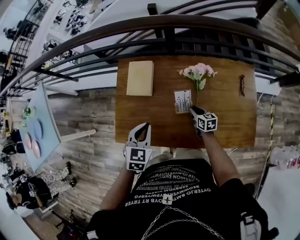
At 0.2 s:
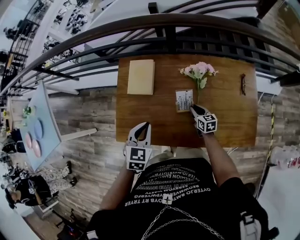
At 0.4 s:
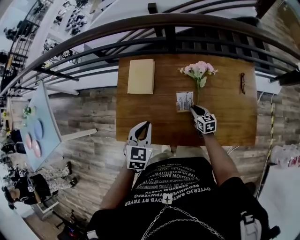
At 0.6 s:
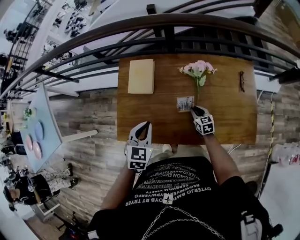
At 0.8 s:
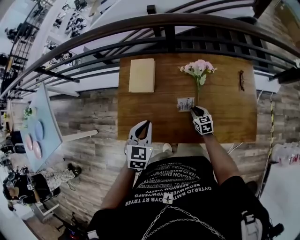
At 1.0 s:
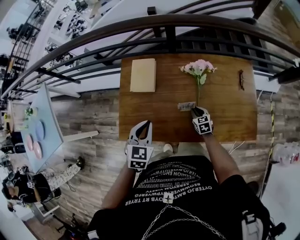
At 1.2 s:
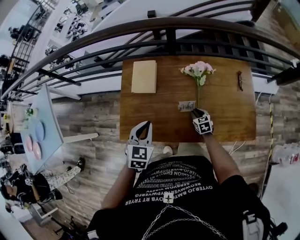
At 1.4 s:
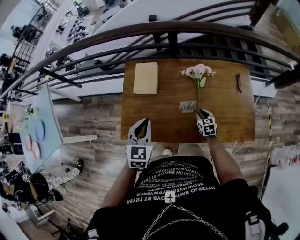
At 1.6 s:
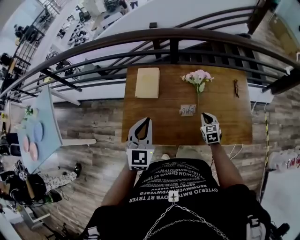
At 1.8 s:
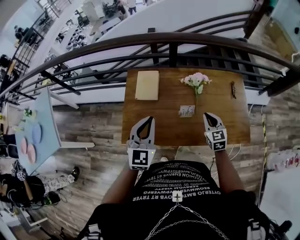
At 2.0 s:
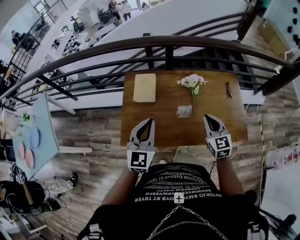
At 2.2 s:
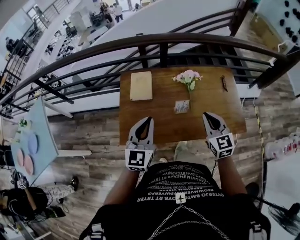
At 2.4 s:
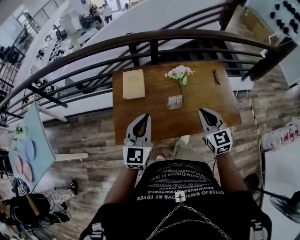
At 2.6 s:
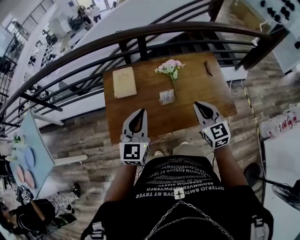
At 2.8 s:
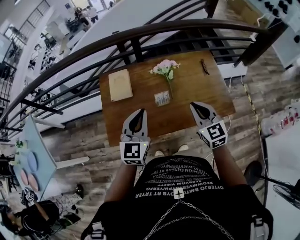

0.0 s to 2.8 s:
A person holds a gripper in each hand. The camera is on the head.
0.0 to 1.4 s: The right gripper travels backward by about 5 cm, and rotates some 20 degrees. Meanwhile the left gripper is displaced upward by about 5 cm.
1.4 to 2.8 s: The left gripper travels upward and to the right by some 15 cm, and changes its angle by some 20 degrees, while the right gripper shifts some 30 cm upward, swivels some 30 degrees, and closes up.

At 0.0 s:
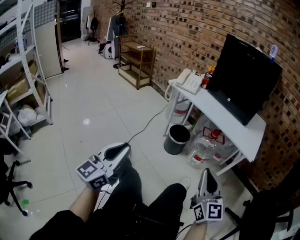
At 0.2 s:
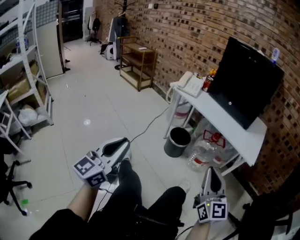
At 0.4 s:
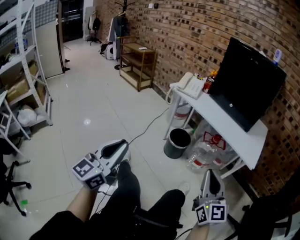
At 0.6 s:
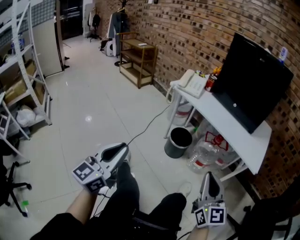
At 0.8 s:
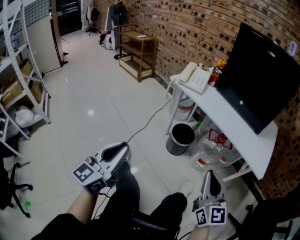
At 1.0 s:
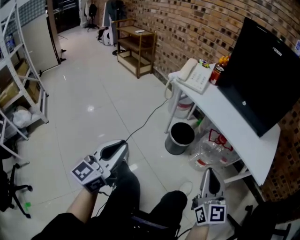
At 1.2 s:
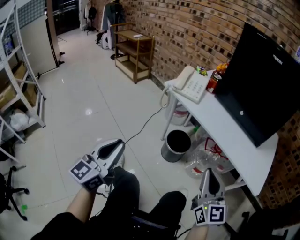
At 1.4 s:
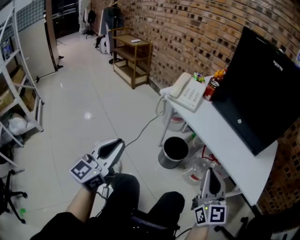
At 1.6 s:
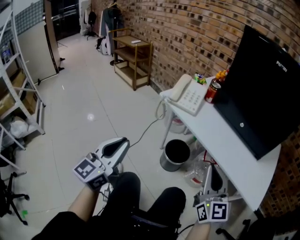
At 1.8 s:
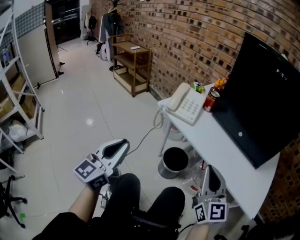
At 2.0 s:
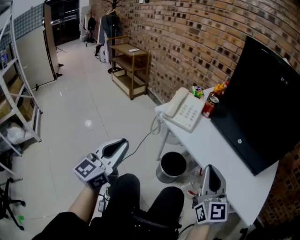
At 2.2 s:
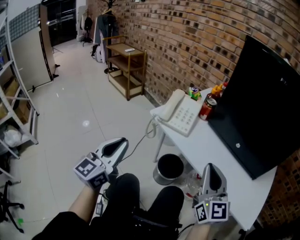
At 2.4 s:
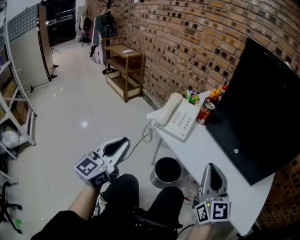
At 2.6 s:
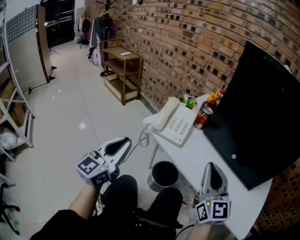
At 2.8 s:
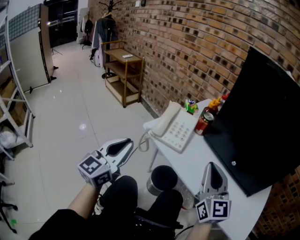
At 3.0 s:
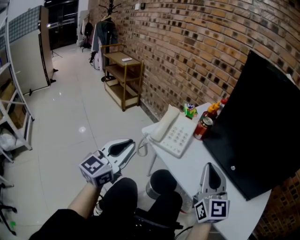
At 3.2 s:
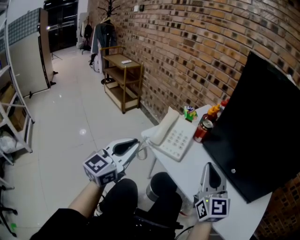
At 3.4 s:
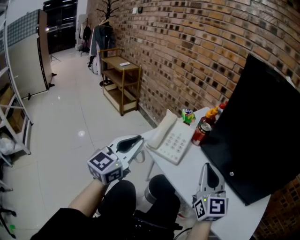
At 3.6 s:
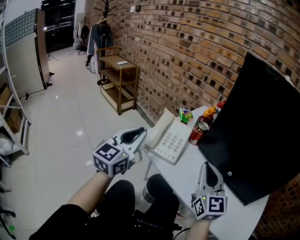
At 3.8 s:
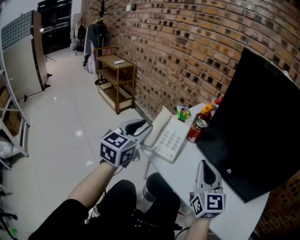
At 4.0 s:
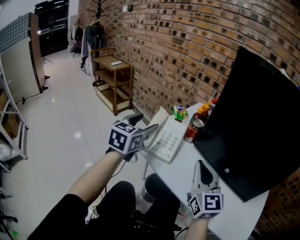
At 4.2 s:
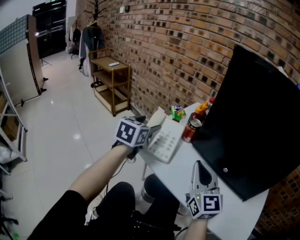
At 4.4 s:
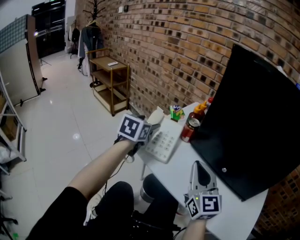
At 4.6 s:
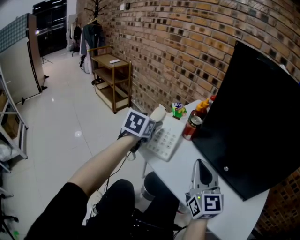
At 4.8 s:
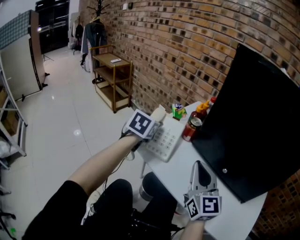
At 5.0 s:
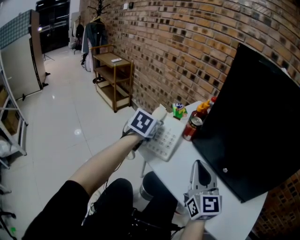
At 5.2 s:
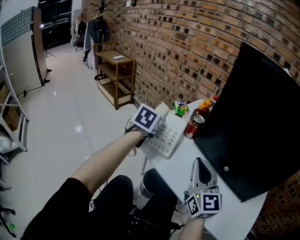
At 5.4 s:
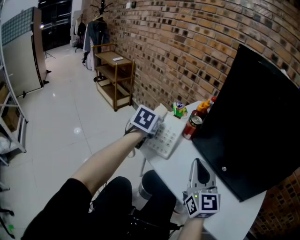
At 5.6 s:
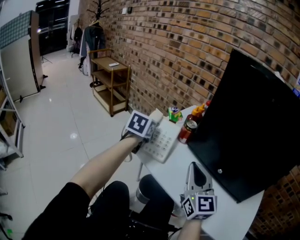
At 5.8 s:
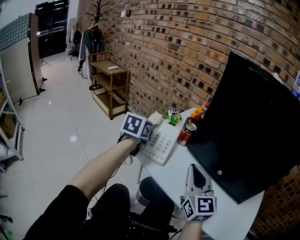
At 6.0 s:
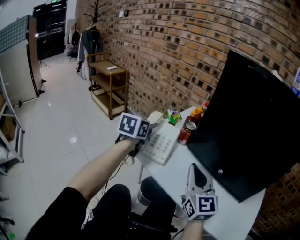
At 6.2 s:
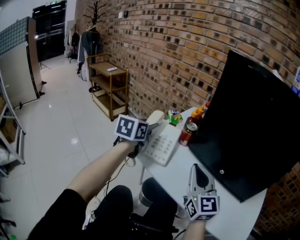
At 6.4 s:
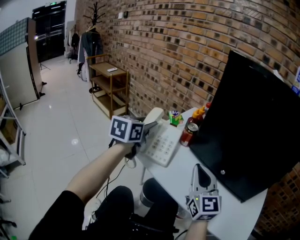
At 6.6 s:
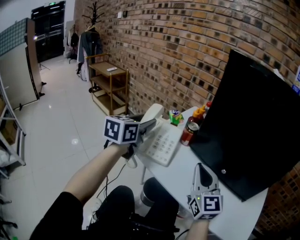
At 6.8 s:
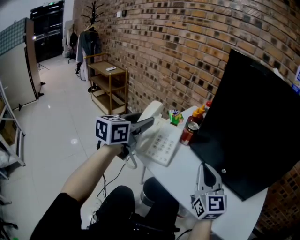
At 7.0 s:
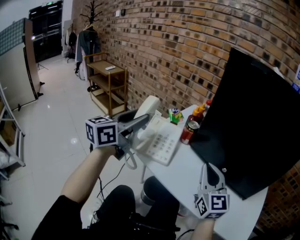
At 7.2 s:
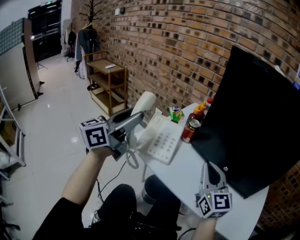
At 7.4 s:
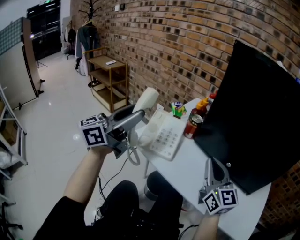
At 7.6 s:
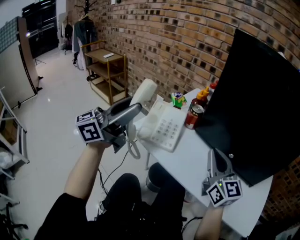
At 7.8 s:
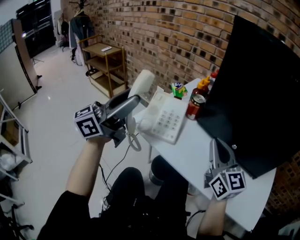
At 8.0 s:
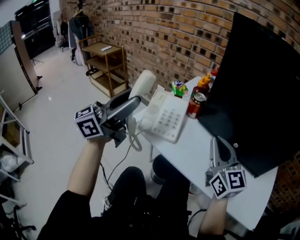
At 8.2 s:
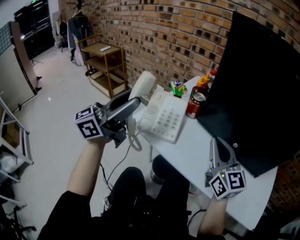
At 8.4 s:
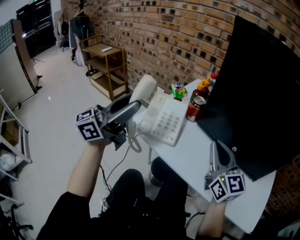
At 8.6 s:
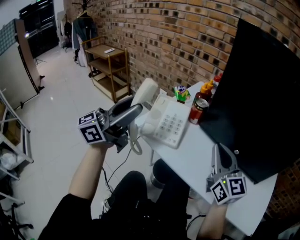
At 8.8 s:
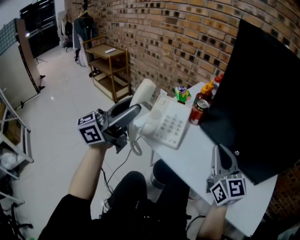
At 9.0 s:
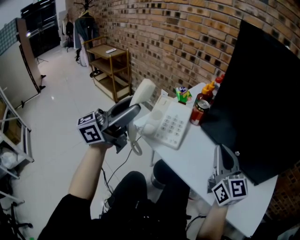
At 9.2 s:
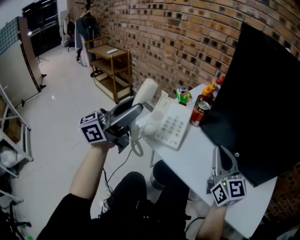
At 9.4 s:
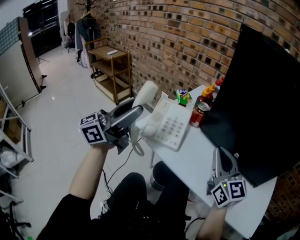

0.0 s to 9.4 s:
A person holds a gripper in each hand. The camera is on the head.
0.0 to 1.6 s: The grippers both shift forward by about 30 cm.
1.6 to 3.2 s: Both grippers travel together forward, roughly 20 cm.
3.2 to 4.8 s: The left gripper goes roughly 20 cm forward and to the right, angles its fingers downward, by some 30 degrees, and opens up.
4.8 to 6.2 s: The grippers stay close to where they were, moving slightly.
6.2 to 7.8 s: The left gripper heads backward and upward, covering some 15 cm, and tilts its fingers some 50 degrees upward.
7.8 to 9.4 s: The grippers make only small movements.

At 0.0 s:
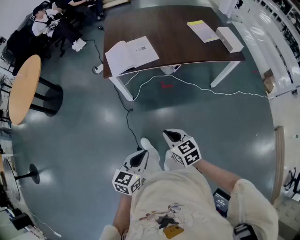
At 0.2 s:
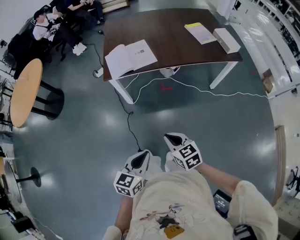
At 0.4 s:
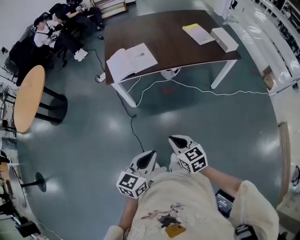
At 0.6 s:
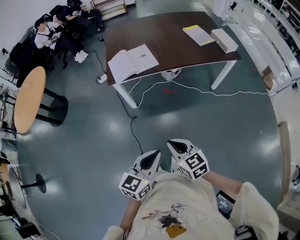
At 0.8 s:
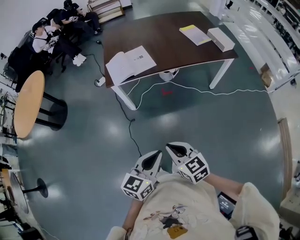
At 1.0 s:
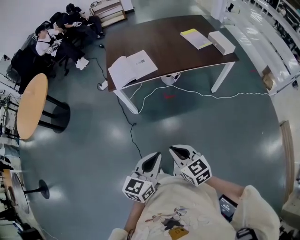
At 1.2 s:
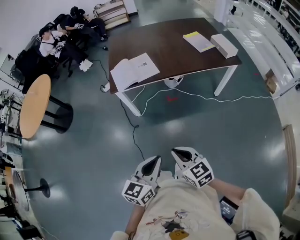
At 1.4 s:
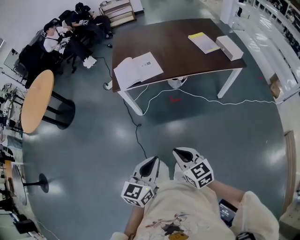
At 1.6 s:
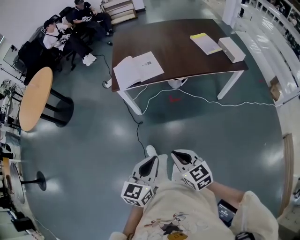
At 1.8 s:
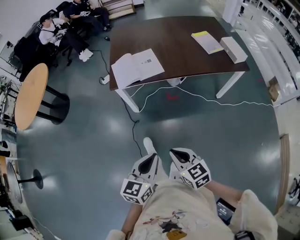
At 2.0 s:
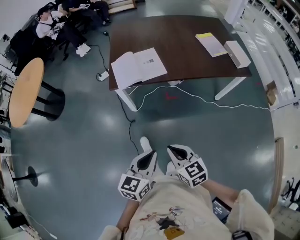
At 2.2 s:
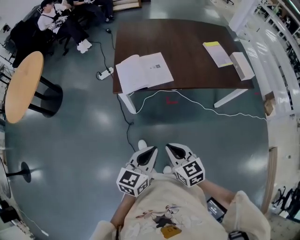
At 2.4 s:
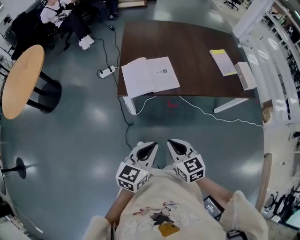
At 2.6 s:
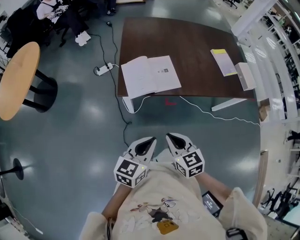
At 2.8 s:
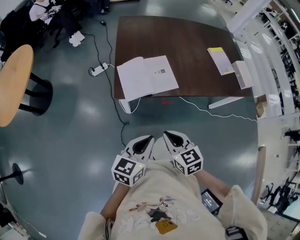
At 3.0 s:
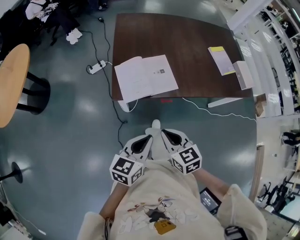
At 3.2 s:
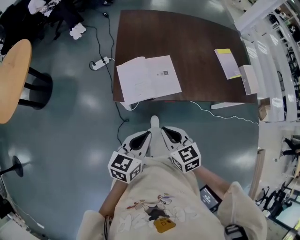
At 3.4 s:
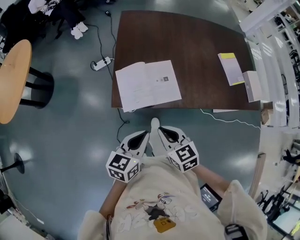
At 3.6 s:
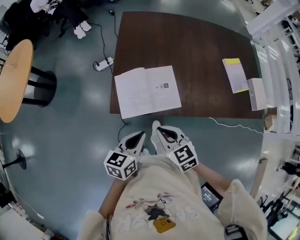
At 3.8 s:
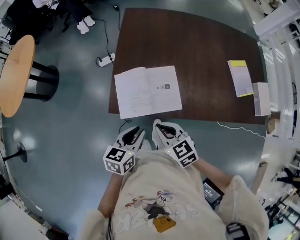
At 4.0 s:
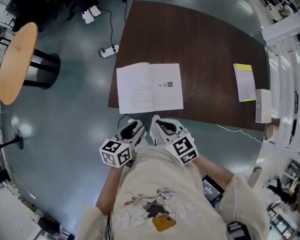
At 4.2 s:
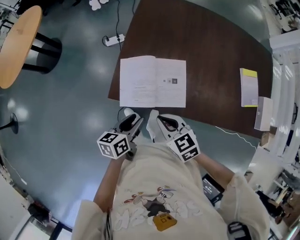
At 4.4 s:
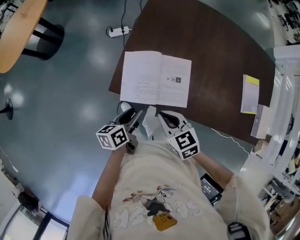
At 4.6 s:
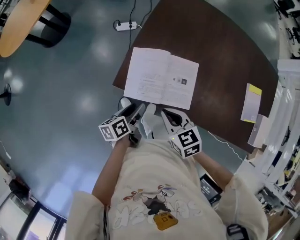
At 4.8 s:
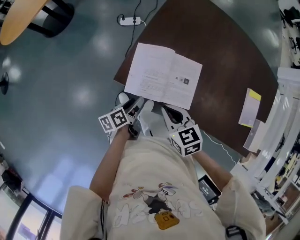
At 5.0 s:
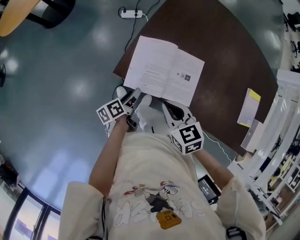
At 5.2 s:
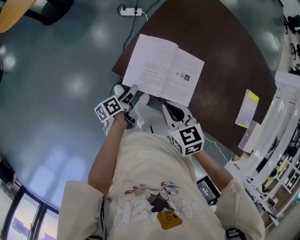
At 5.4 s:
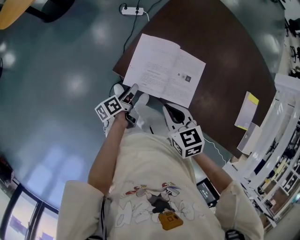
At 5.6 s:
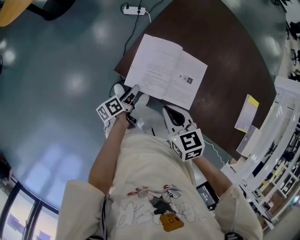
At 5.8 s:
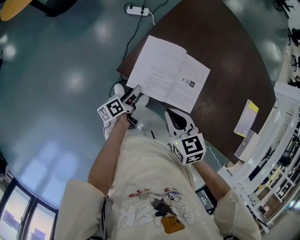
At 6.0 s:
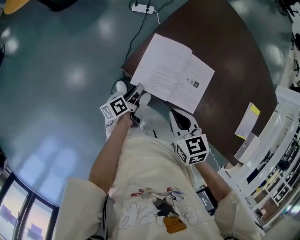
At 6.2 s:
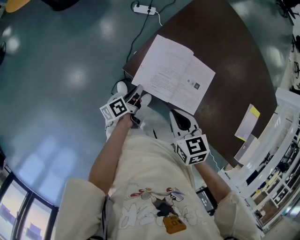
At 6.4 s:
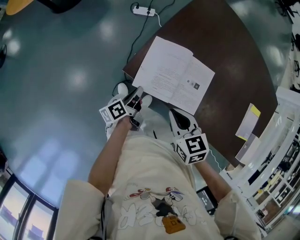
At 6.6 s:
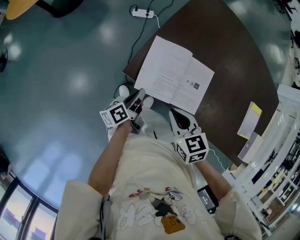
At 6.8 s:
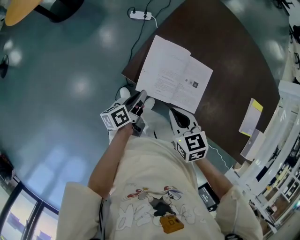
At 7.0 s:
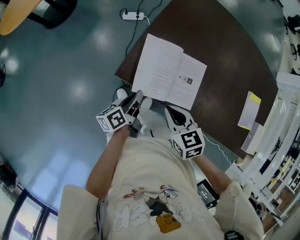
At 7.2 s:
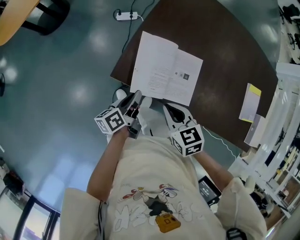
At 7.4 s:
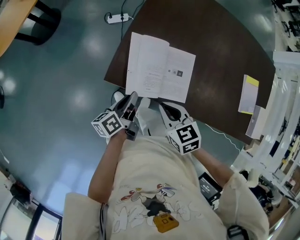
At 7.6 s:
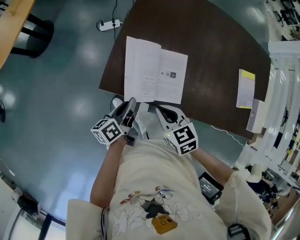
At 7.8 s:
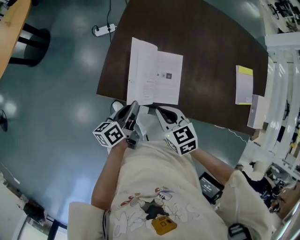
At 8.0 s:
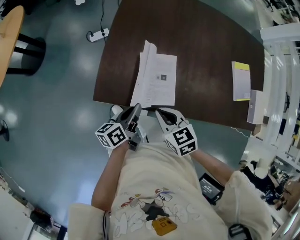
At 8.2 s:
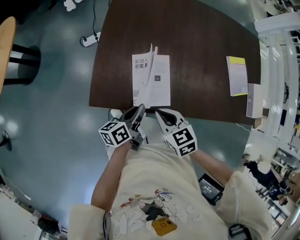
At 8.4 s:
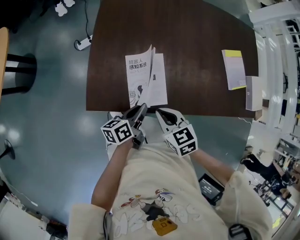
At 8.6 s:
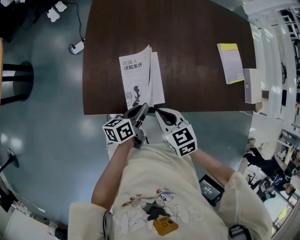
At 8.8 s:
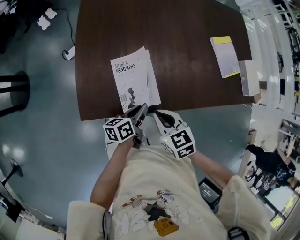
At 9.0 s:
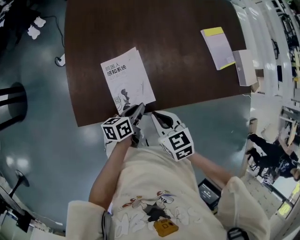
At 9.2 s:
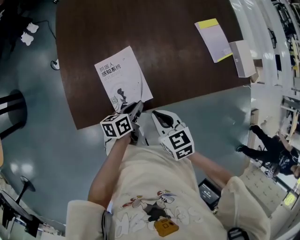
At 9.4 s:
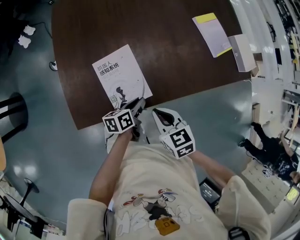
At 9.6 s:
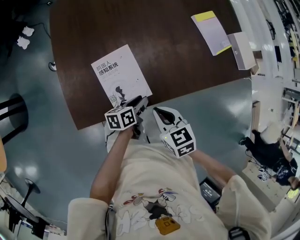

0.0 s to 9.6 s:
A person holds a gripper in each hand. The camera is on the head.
0.0 to 1.6 s: The left gripper travels upward by approximately 10 cm. Meanwhile the right gripper heads backward and upward, covering approximately 10 cm.
1.6 to 3.2 s: Both grippers are carried forward, about 40 cm.
3.2 to 4.8 s: The left gripper travels downward by approximately 20 cm, rolls counterclockwise, seen from behind, by some 60 degrees, and opens. Meanwhile the right gripper ends up about 20 cm from where it was, and swivels roughly 30 degrees.
4.8 to 6.4 s: The left gripper shifts by approximately 5 cm, and closes its fingers.
6.4 to 8.0 s: The right gripper travels to the right by roughly 10 cm, while the left gripper shifts approximately 15 cm to the right and upward, and turns by roughly 30 degrees.
8.0 to 9.6 s: The left gripper moves approximately 20 cm, turns by about 40 degrees, and opens; the right gripper shifts by some 10 cm, and turns by approximately 30 degrees.

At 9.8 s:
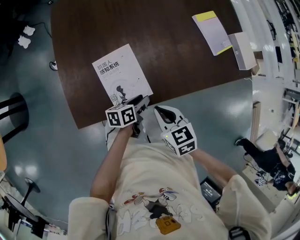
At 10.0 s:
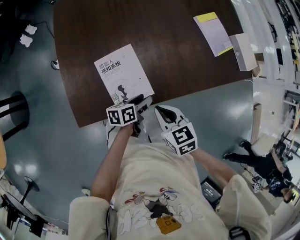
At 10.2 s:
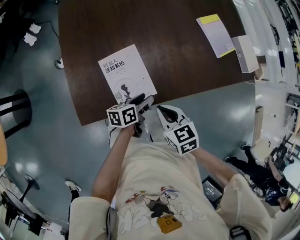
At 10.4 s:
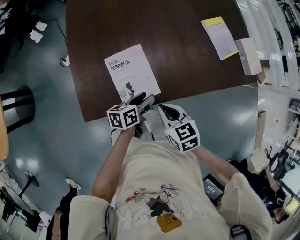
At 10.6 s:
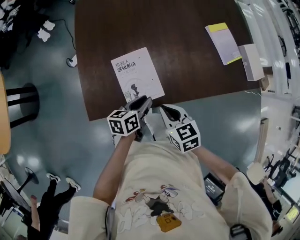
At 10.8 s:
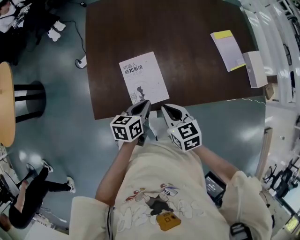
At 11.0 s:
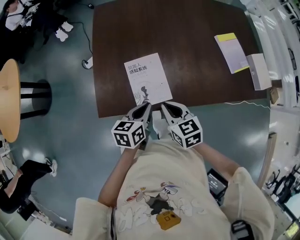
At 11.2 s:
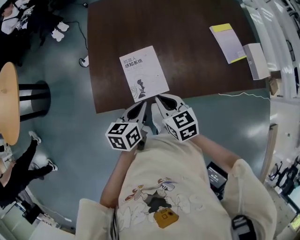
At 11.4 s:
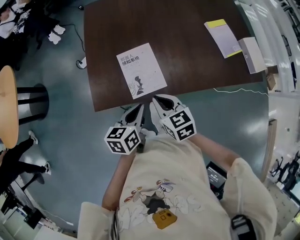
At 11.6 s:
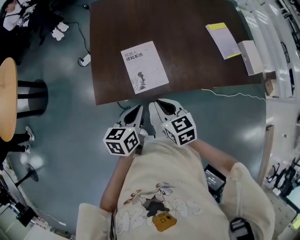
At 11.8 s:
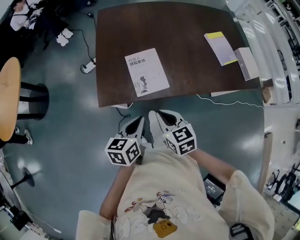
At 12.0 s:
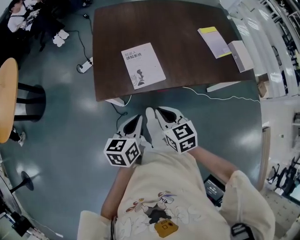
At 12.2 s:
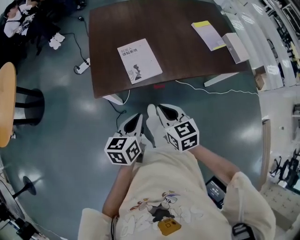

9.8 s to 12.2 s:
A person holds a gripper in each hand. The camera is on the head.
9.8 to 11.0 s: The right gripper changes place by approximately 5 cm. Meanwhile the left gripper is displaced upward and to the left by some 15 cm, swivels approximately 30 degrees, and closes up.
11.0 to 12.2 s: Both grippers travel together backward, roughly 20 cm.
